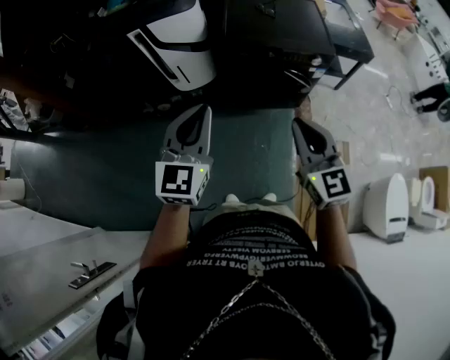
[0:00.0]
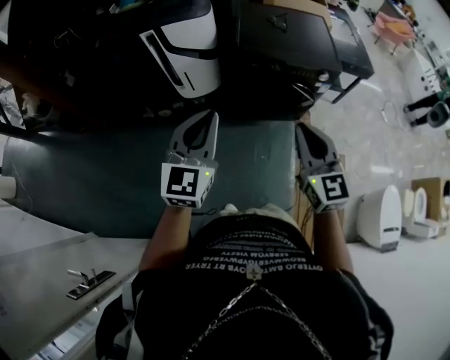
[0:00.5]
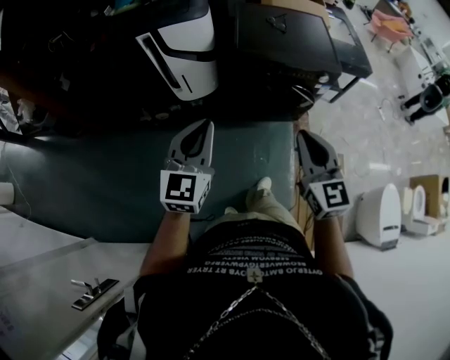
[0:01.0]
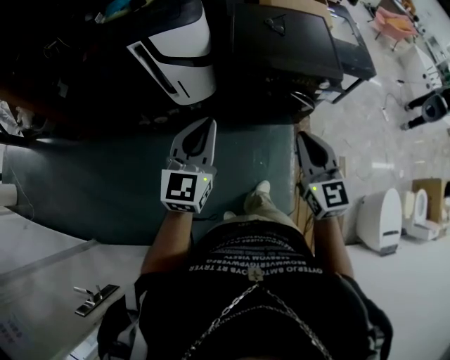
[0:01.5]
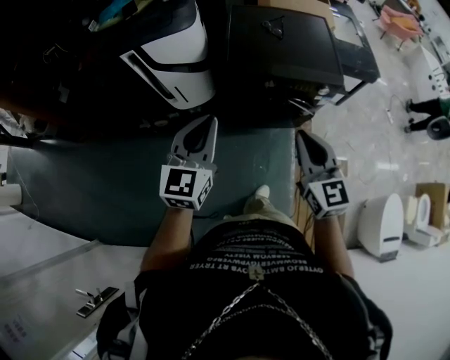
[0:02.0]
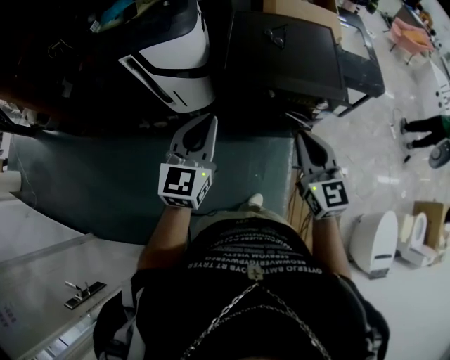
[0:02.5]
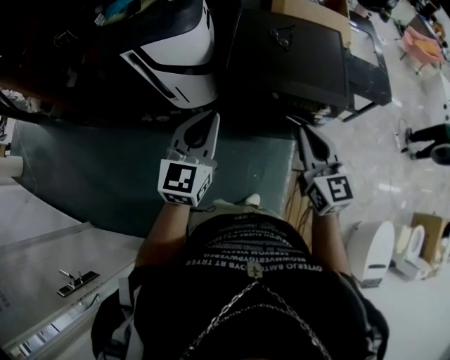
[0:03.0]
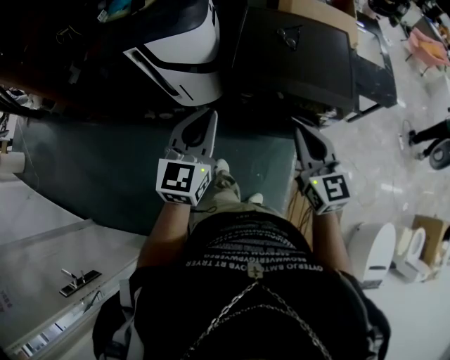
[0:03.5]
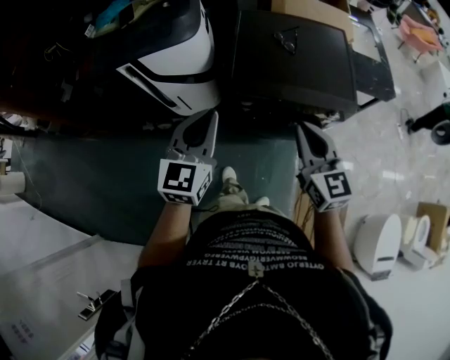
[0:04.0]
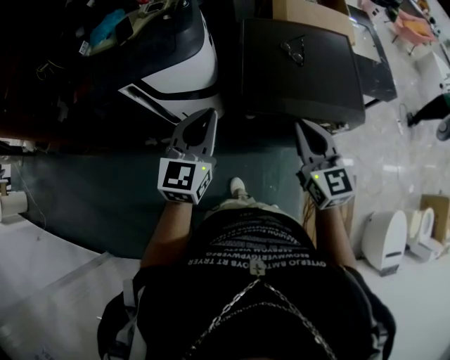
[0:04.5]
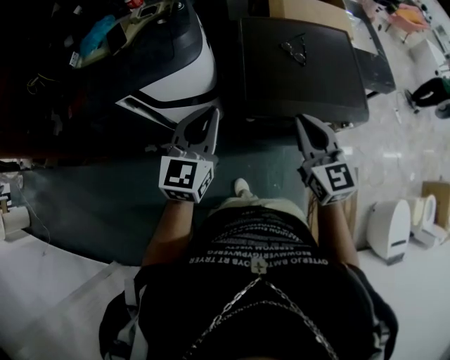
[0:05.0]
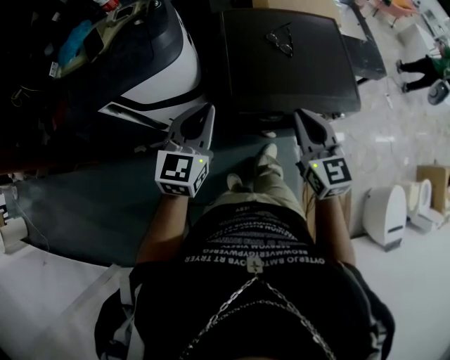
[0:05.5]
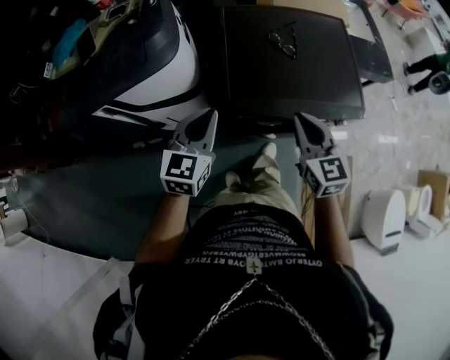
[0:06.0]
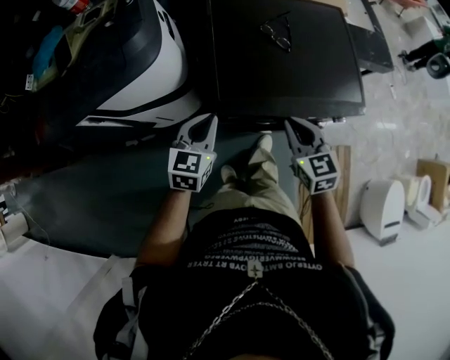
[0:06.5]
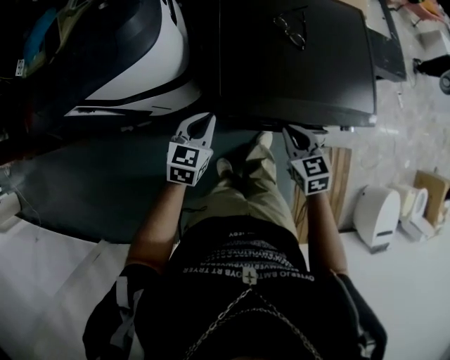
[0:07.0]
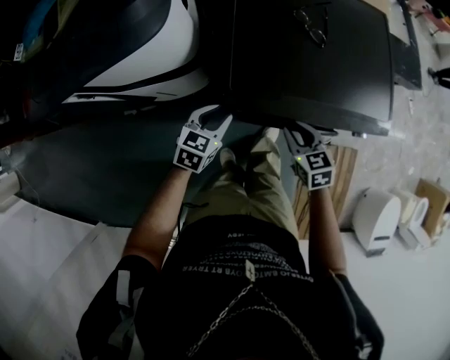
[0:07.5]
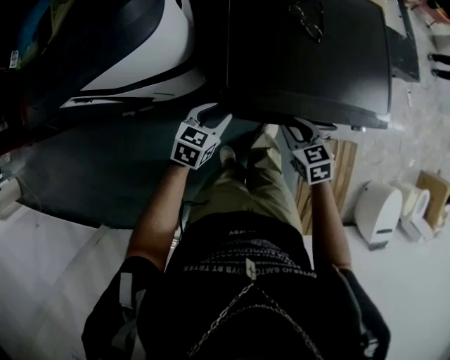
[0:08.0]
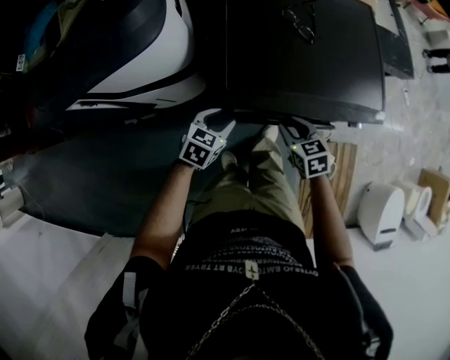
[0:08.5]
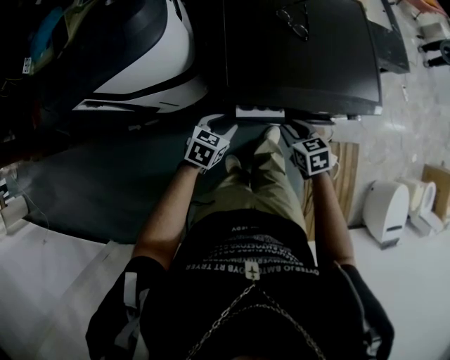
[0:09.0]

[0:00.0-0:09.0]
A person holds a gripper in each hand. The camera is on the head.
0:00.0 to 0:02.0: The two grippers go some 15 cm forward.
0:02.0 to 0:04.5: The two grippers go roughly 25 cm forward.
0:04.5 to 0:07.0: The grippers both shift downward and forward by roughly 30 cm. The left gripper swivels approximately 30 degrees, while the right gripper changes its angle by some 30 degrees.
0:07.0 to 0:09.0: The right gripper heads downward, covering approximately 5 cm, and opens up. The left gripper shifts approximately 10 cm downward and backward, rotates roughly 20 degrees, and opens its fingers.

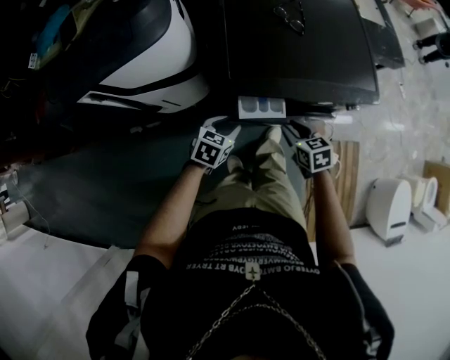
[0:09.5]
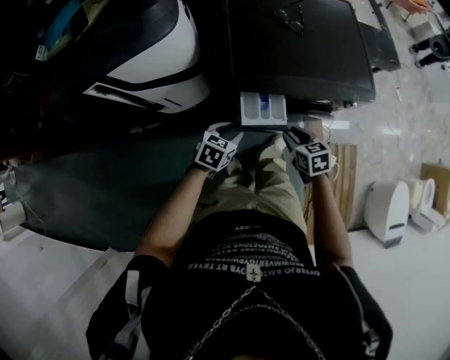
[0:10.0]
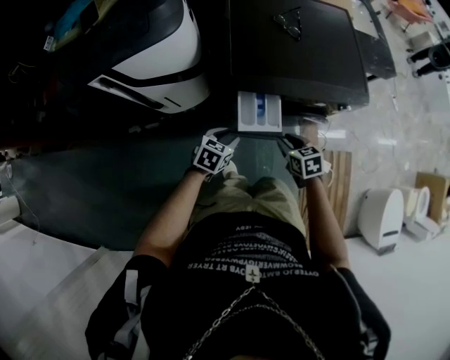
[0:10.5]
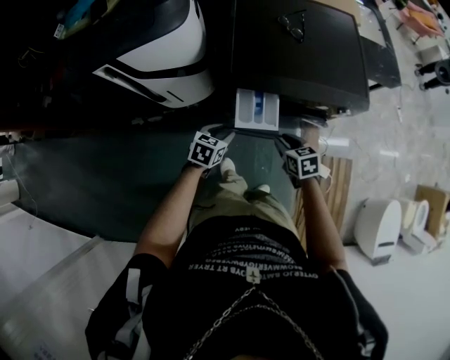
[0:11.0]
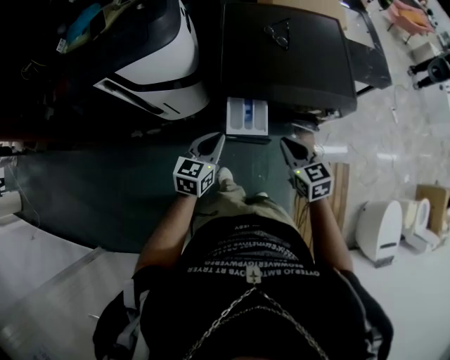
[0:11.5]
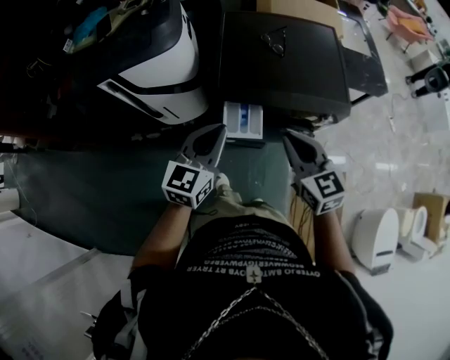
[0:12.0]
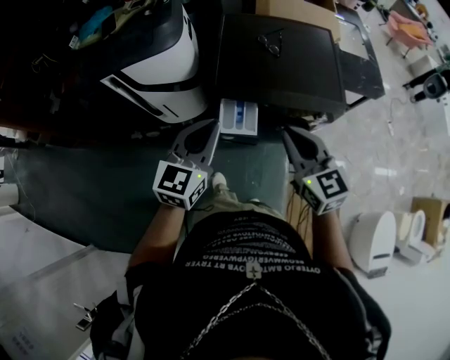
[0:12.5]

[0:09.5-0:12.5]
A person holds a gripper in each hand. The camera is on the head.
0:09.5 to 0:11.0: Both grippers move backward, some 5 cm.
0:11.0 to 0:12.5: The two grippers go about 35 cm upward. The right gripper tilts its fingers about 40 degrees upward, and closes its fingers. Meanwhile the left gripper angles its fingers upward, by about 40 degrees, and closes up.

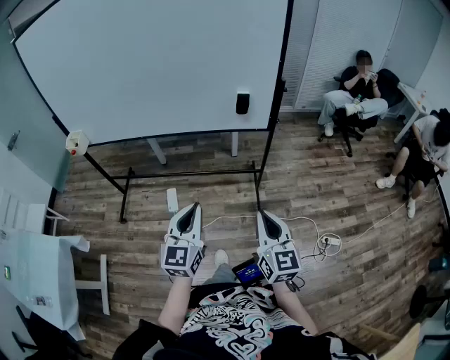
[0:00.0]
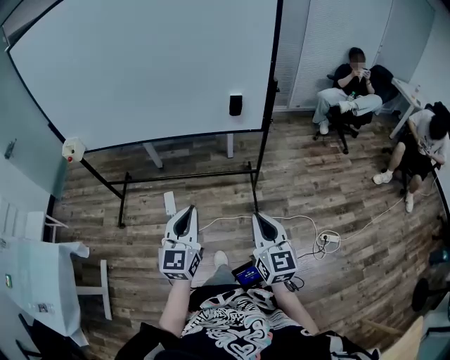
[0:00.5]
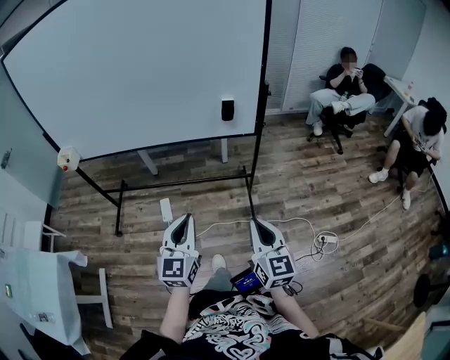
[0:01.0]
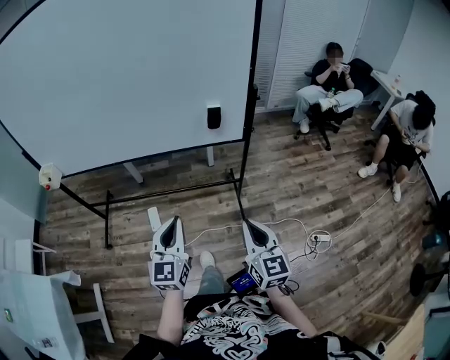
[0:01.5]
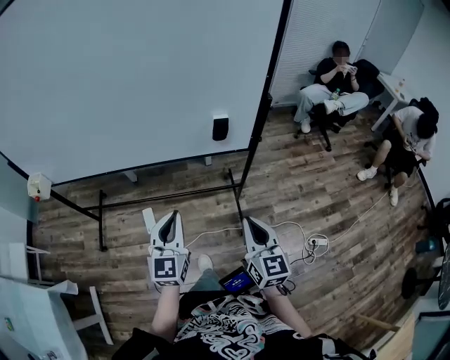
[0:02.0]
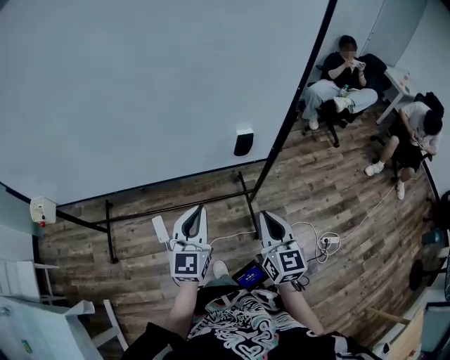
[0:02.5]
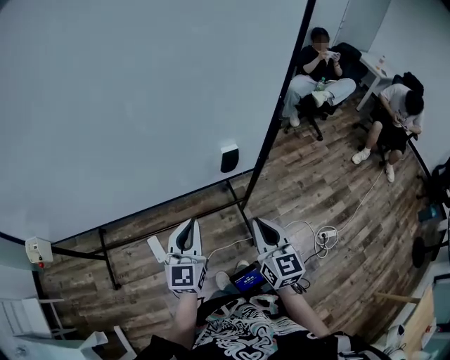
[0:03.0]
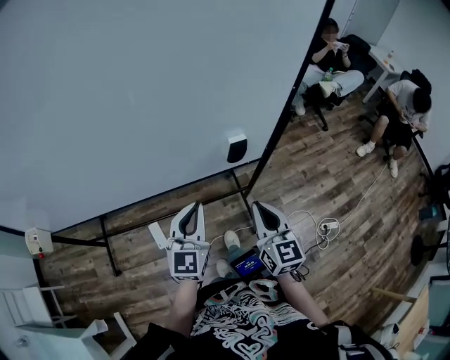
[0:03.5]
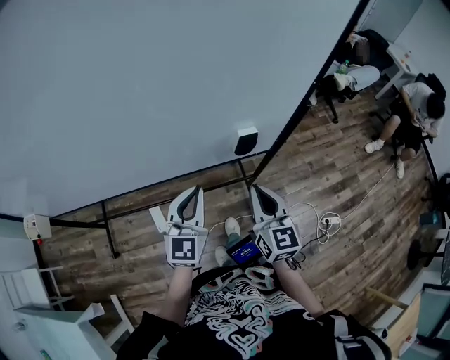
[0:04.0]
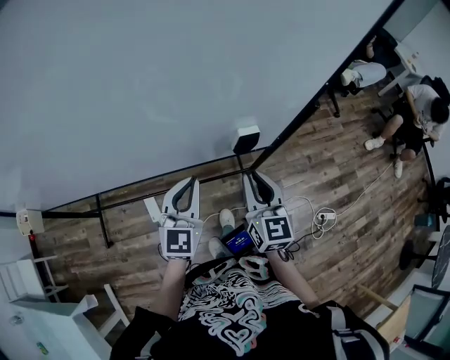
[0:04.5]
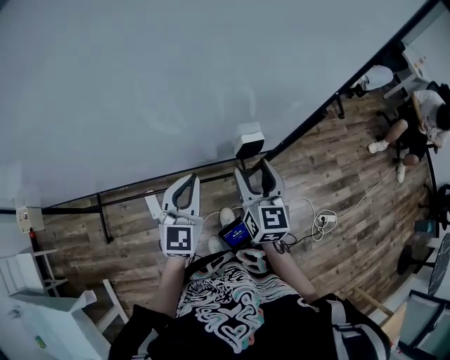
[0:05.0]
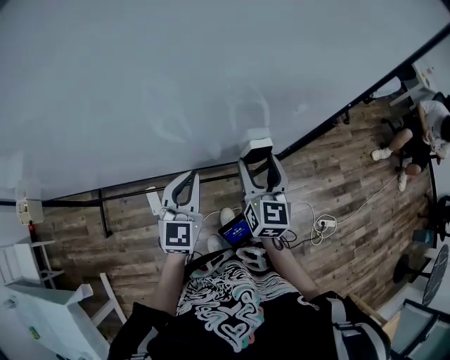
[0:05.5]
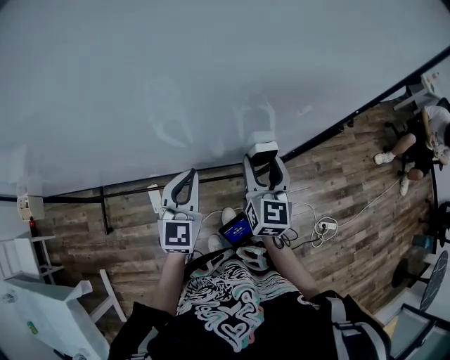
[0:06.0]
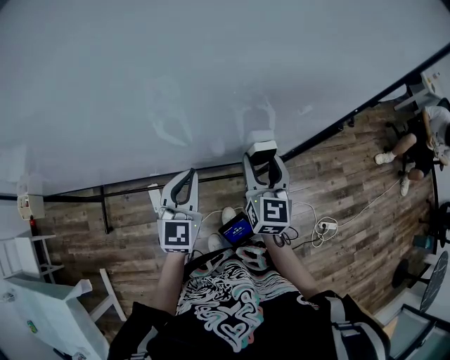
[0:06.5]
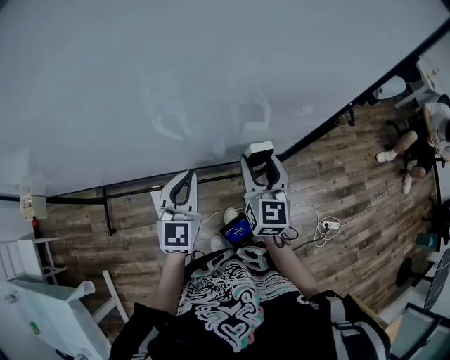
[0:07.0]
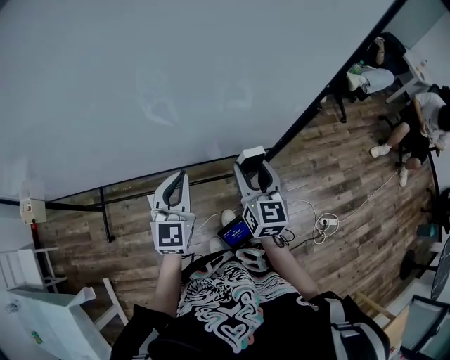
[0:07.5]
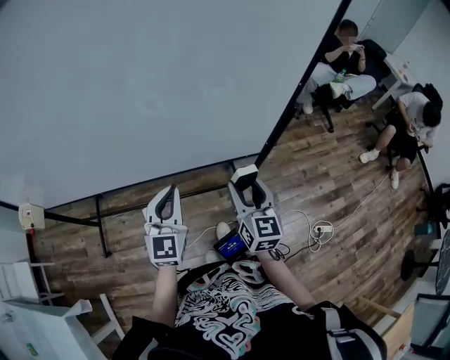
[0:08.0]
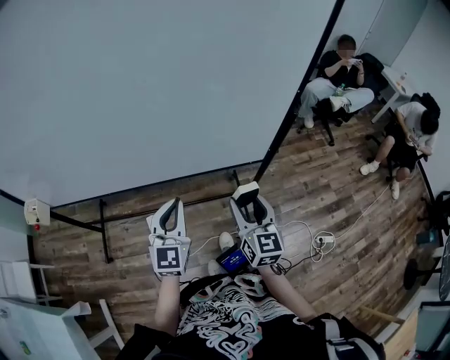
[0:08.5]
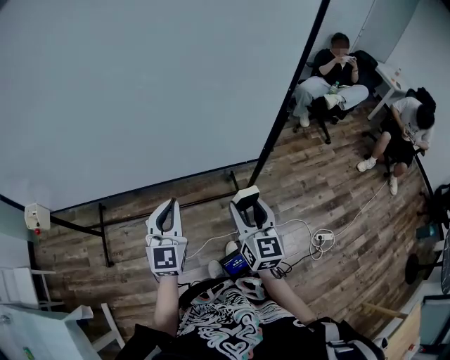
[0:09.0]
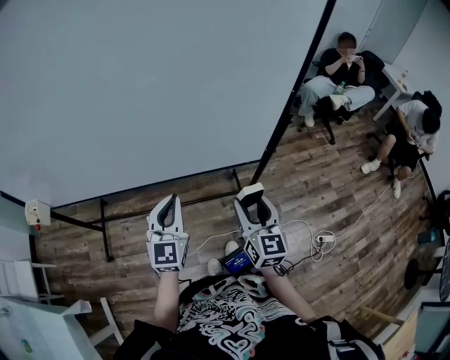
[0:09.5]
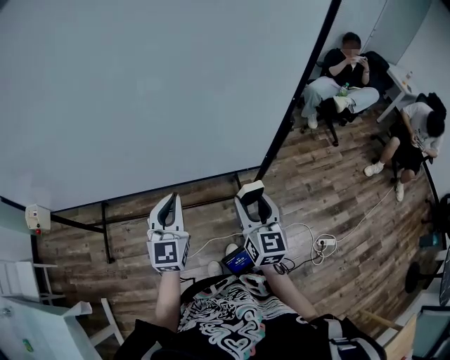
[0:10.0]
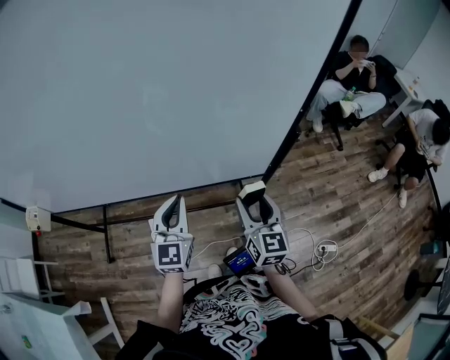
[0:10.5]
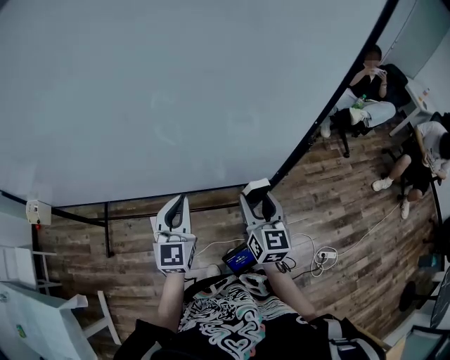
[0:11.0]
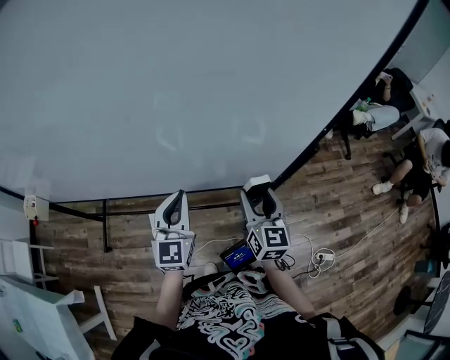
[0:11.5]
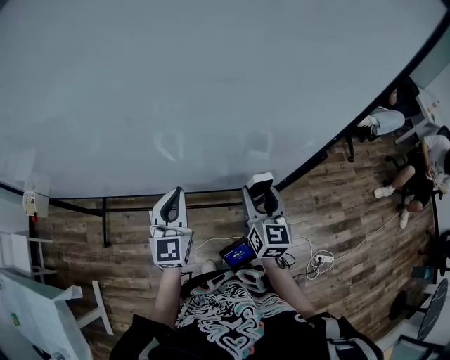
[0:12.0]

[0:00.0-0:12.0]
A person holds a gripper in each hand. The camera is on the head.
0:00.0 to 0:02.0: Both grippers move forward, some 15 cm.
0:02.0 to 0:04.0: The grippers both shift forward by approximately 20 cm.
0:04.0 to 0:06.0: The right gripper heads forward, covering approximately 15 cm, and opens its fingers; the left gripper travels forward by about 5 cm.
0:06.0 to 0:08.0: Both grippers travel together backward, approximately 10 cm.
0:08.0 to 0:10.0: The right gripper goes backward and returns, about 10 cm each way.
0:10.0 to 0:12.0: The left gripper heads forward, covering about 10 cm. The right gripper shifts about 10 cm forward.

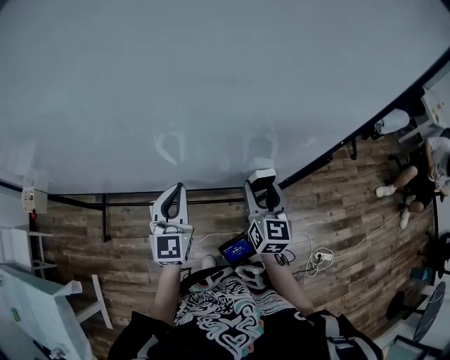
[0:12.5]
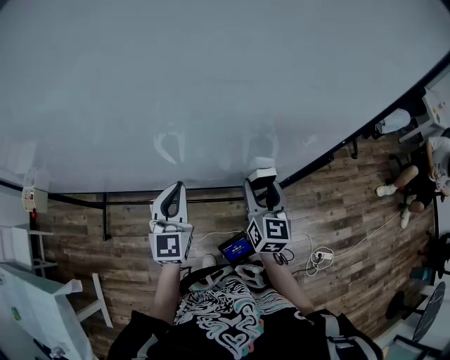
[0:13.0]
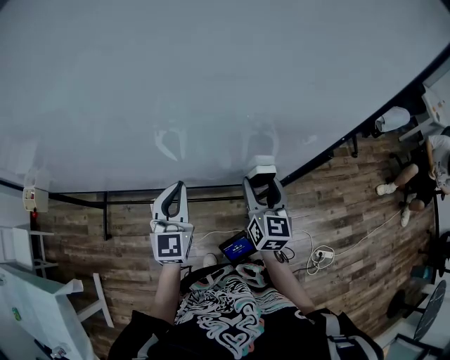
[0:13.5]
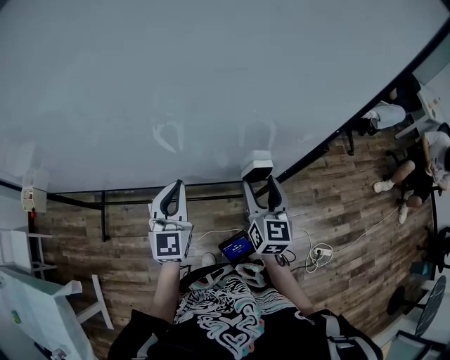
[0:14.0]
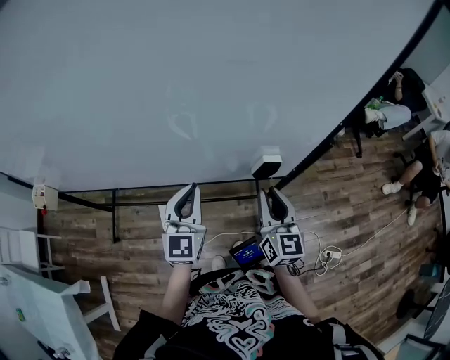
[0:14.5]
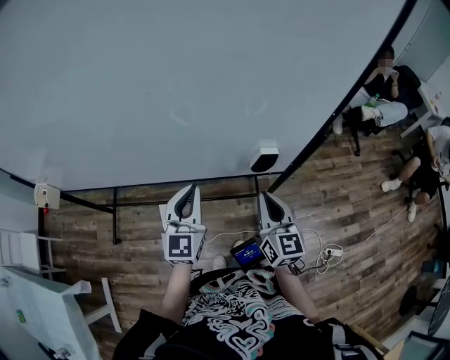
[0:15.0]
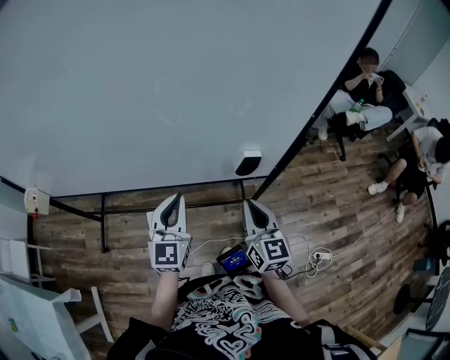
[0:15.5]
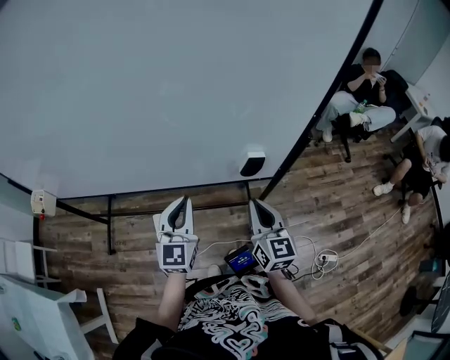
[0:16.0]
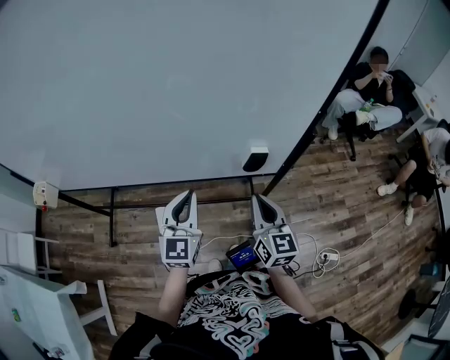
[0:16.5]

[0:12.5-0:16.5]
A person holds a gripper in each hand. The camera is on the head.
0:12.5 to 0:14.5: The right gripper goes about 5 cm backward, and closes.
0:14.5 to 0:16.5: The grippers make only small movements.
